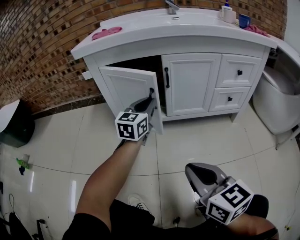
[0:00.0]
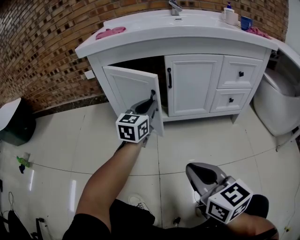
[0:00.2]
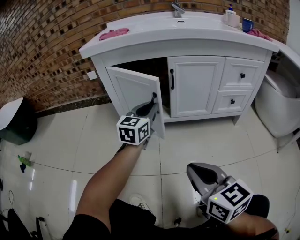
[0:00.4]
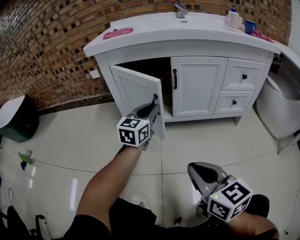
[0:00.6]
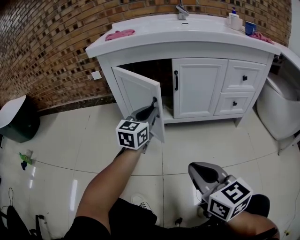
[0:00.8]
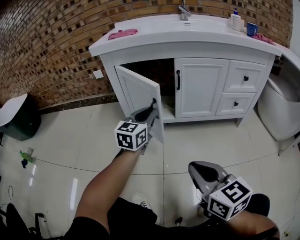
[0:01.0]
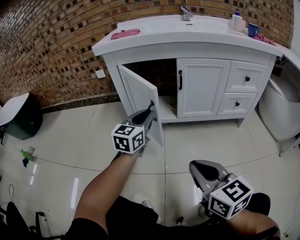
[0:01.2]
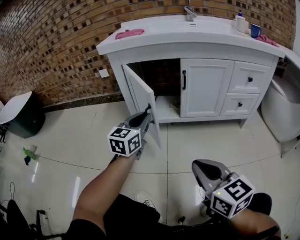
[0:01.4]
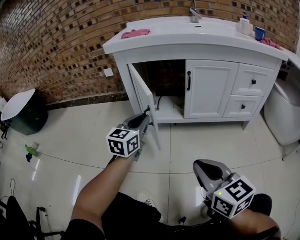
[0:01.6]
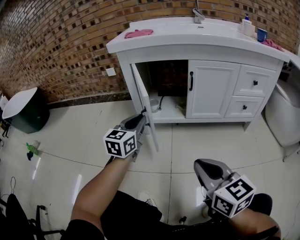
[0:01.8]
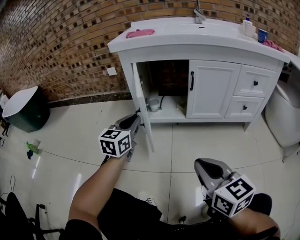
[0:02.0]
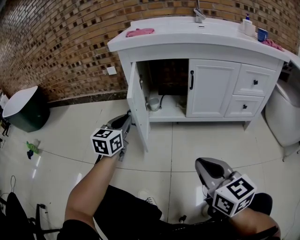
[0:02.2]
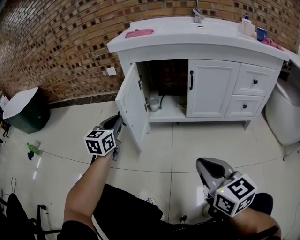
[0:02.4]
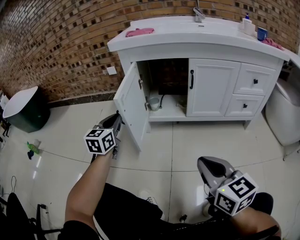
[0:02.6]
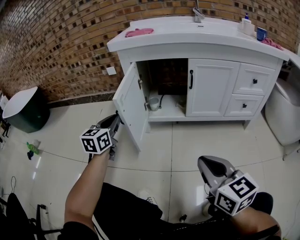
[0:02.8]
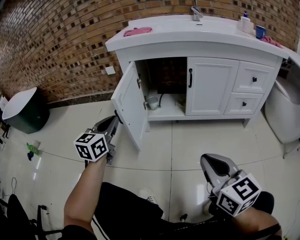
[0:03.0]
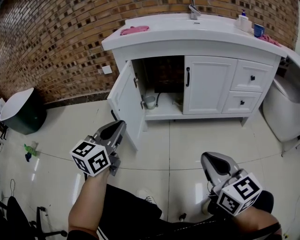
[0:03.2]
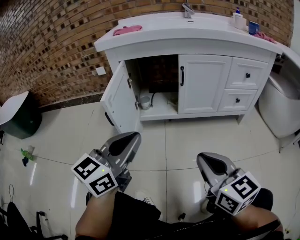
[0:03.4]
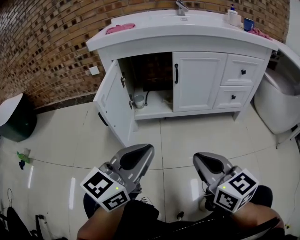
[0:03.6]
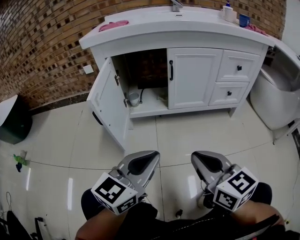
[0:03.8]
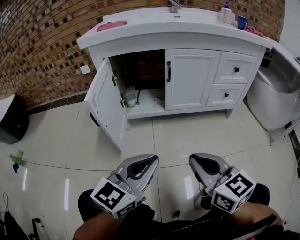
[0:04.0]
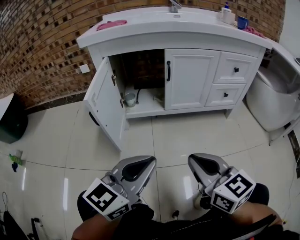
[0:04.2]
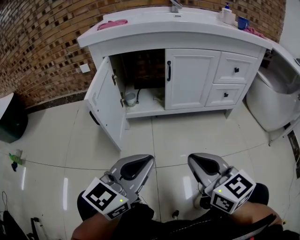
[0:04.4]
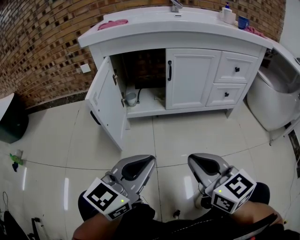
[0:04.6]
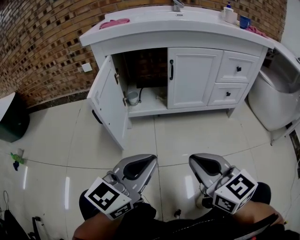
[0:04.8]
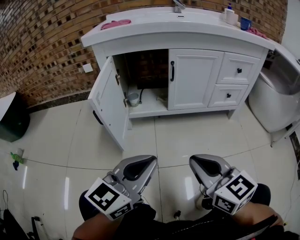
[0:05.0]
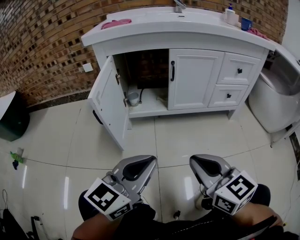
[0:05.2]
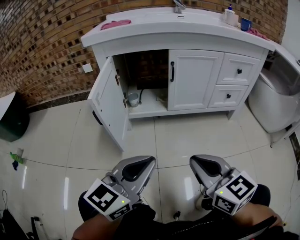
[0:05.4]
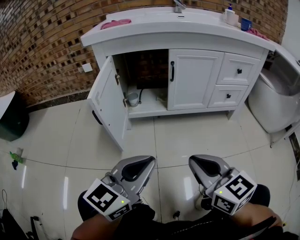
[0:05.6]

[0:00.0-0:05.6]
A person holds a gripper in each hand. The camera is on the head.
0:00.0 to 0:01.4: The left gripper travels to the left and backward by some 15 cm.
0:01.4 to 0:02.8: The left gripper shifts some 15 cm to the left.
0:02.8 to 0:04.2: The left gripper goes about 30 cm to the right and backward, and changes its angle by some 40 degrees.
0:04.2 to 0:05.6: Both grippers stay about where they are.

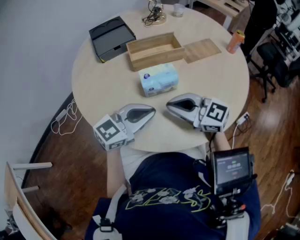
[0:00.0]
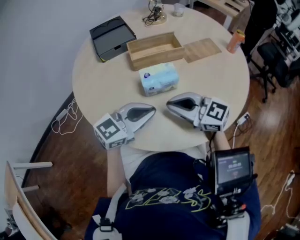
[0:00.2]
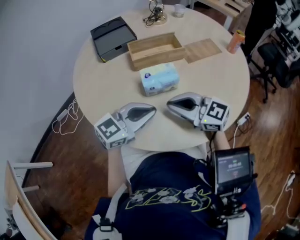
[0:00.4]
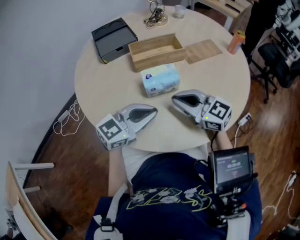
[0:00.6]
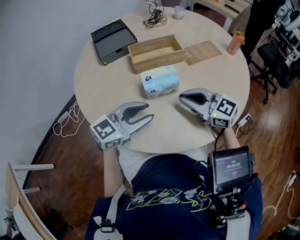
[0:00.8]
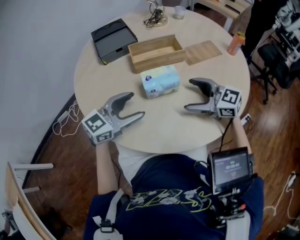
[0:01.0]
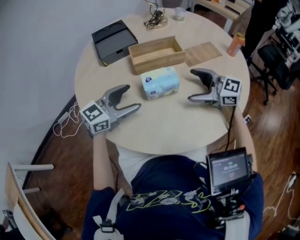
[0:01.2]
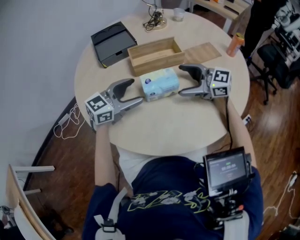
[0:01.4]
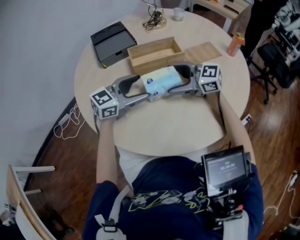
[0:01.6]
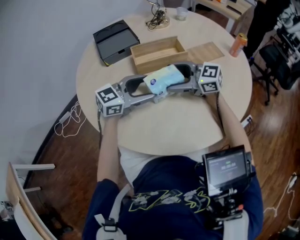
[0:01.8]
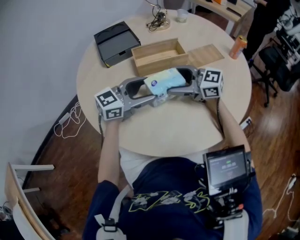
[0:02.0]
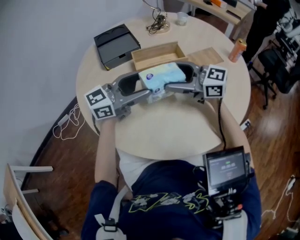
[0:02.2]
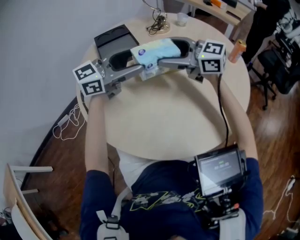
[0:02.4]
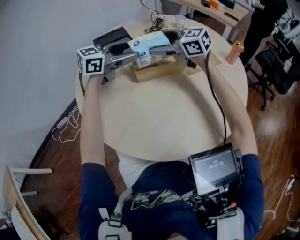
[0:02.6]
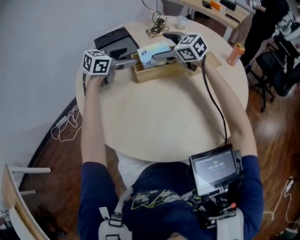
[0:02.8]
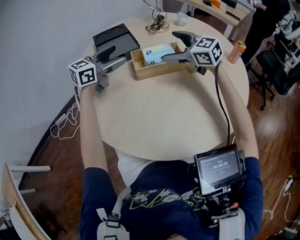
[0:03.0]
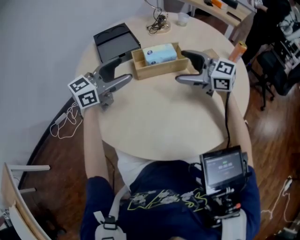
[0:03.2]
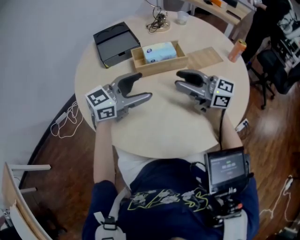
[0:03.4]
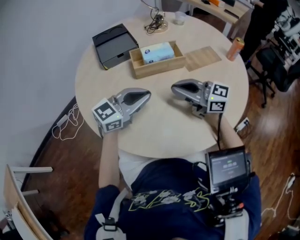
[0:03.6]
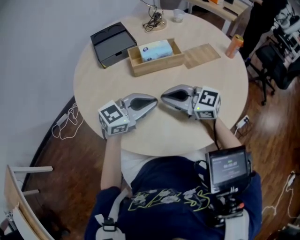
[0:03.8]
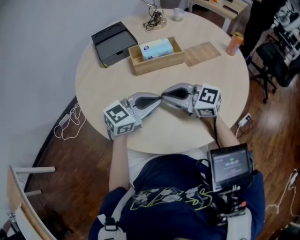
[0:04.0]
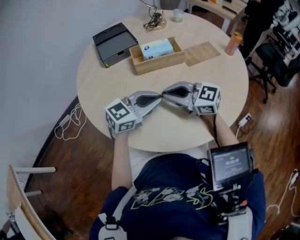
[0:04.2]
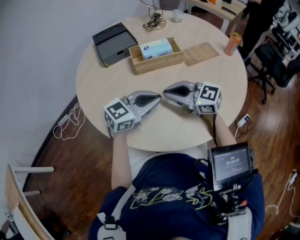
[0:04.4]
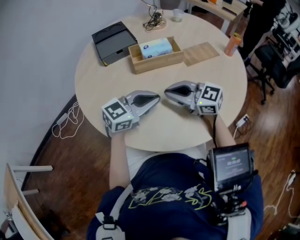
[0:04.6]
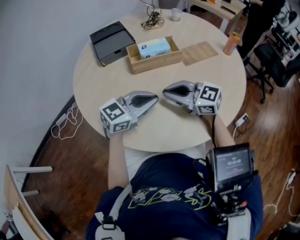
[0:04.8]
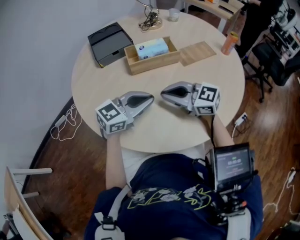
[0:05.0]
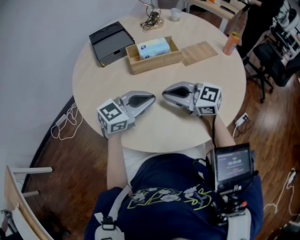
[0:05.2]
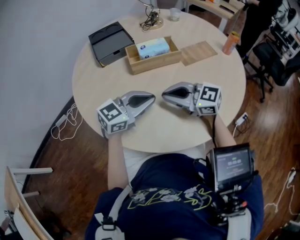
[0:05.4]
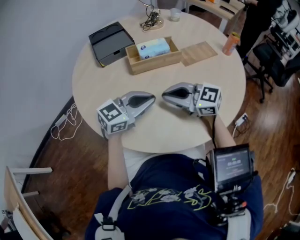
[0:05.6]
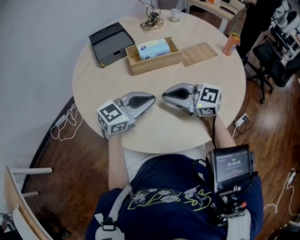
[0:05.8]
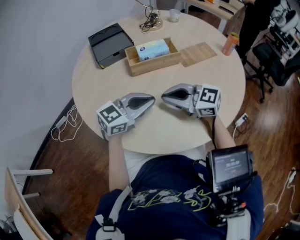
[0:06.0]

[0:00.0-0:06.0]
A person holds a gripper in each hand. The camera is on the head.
0:00.0 to 0:01.6: The right gripper shifts by roughly 10 cm, and opens up, while the left gripper ends up some 10 cm from where it was, and opens.
0:01.6 to 0:03.0: The left gripper shifts by some 20 cm. The right gripper shifts by approximately 15 cm, and rotates some 20 degrees.
0:03.0 to 0:04.4: The left gripper shifts by about 25 cm, and closes its fingers. Meanwhile the right gripper shifts by approximately 20 cm, and closes up.
0:04.4 to 0:06.0: Both grippers stay put.

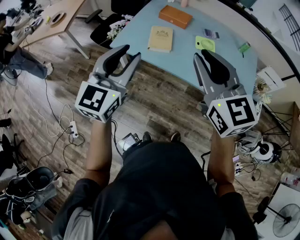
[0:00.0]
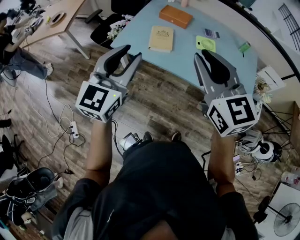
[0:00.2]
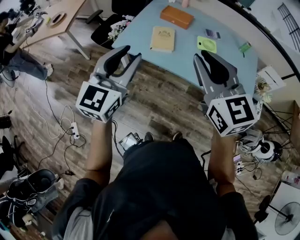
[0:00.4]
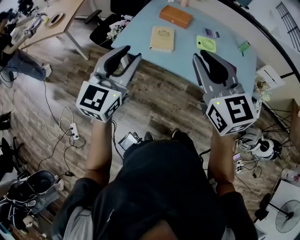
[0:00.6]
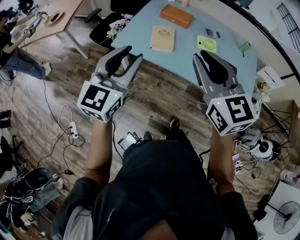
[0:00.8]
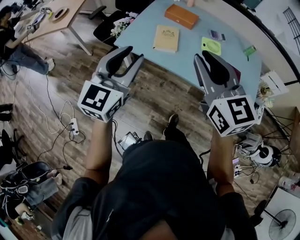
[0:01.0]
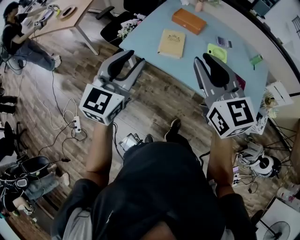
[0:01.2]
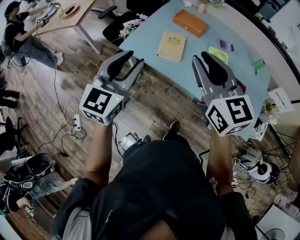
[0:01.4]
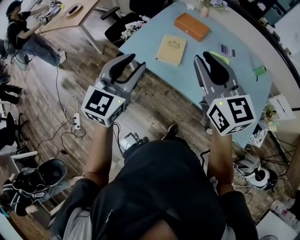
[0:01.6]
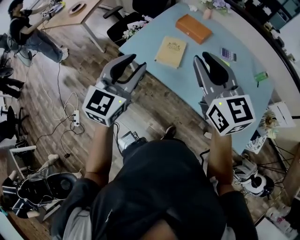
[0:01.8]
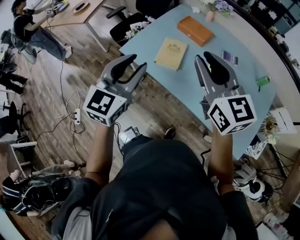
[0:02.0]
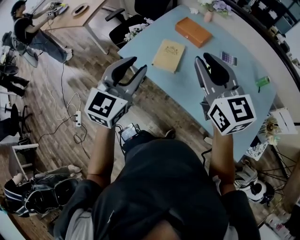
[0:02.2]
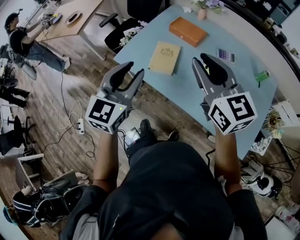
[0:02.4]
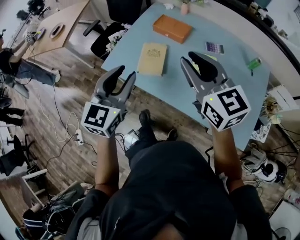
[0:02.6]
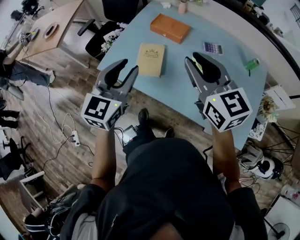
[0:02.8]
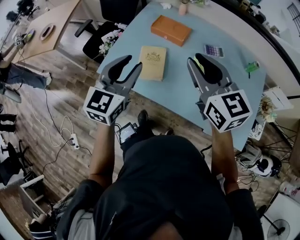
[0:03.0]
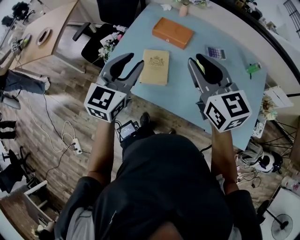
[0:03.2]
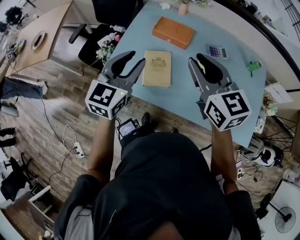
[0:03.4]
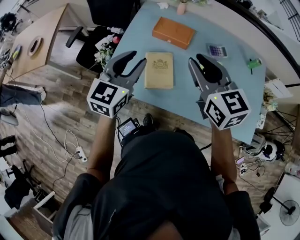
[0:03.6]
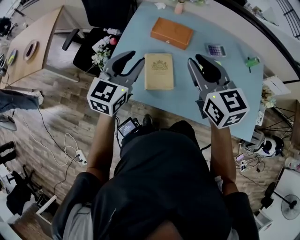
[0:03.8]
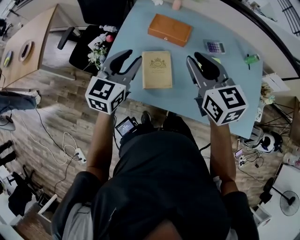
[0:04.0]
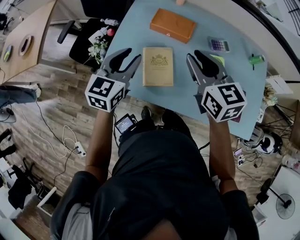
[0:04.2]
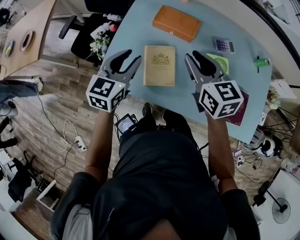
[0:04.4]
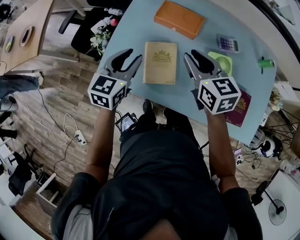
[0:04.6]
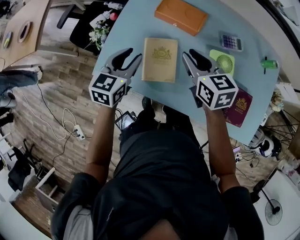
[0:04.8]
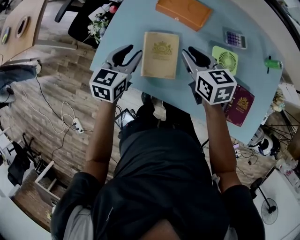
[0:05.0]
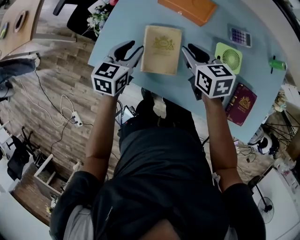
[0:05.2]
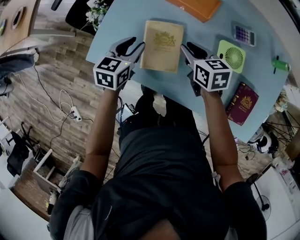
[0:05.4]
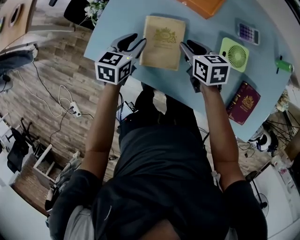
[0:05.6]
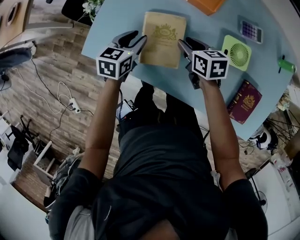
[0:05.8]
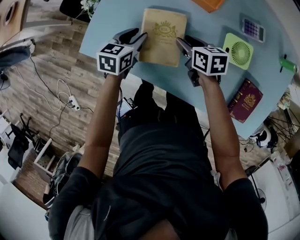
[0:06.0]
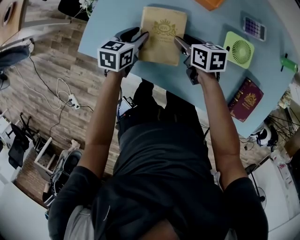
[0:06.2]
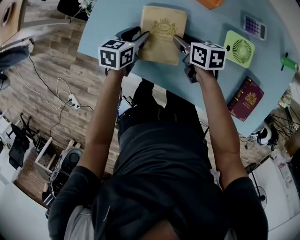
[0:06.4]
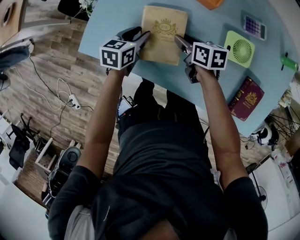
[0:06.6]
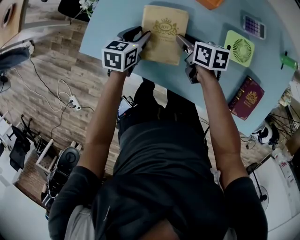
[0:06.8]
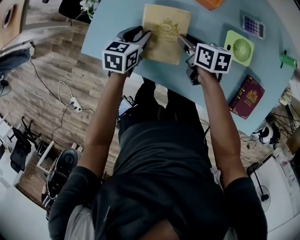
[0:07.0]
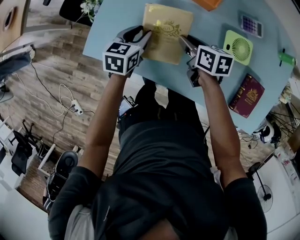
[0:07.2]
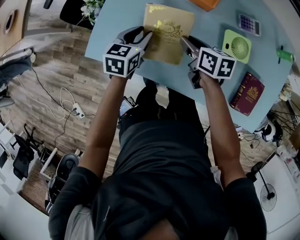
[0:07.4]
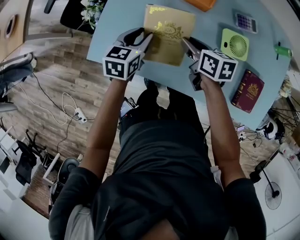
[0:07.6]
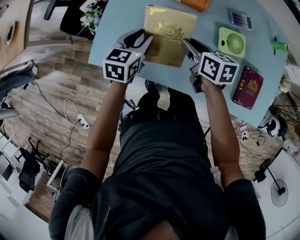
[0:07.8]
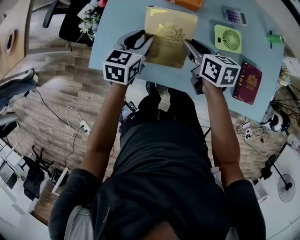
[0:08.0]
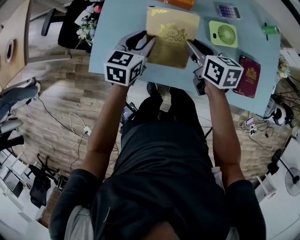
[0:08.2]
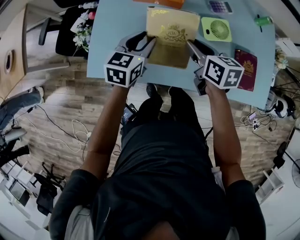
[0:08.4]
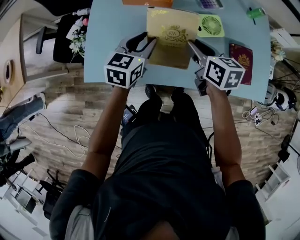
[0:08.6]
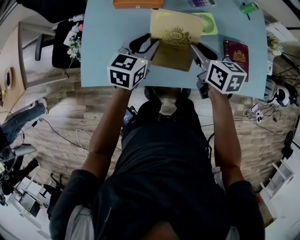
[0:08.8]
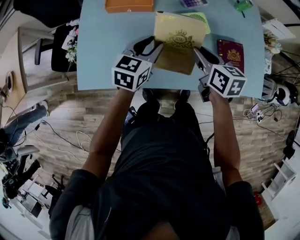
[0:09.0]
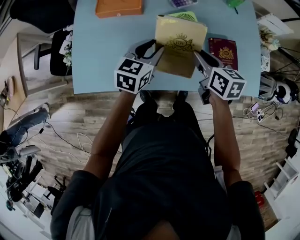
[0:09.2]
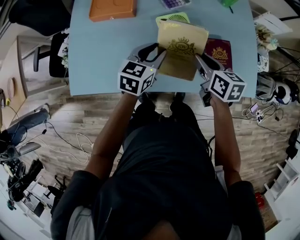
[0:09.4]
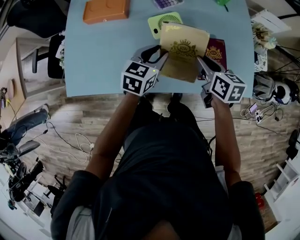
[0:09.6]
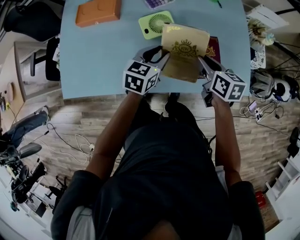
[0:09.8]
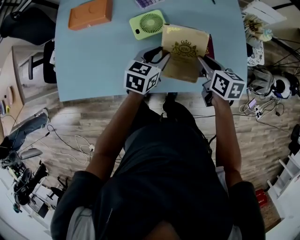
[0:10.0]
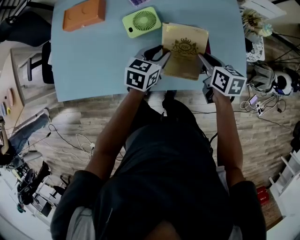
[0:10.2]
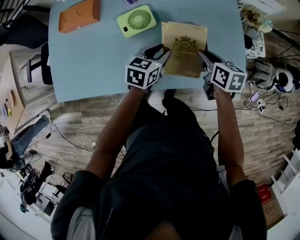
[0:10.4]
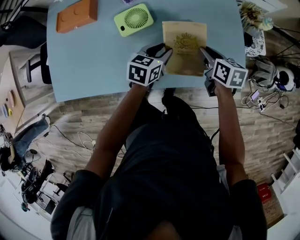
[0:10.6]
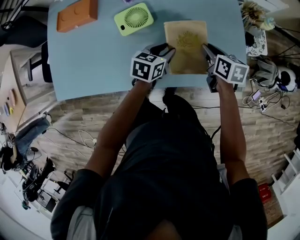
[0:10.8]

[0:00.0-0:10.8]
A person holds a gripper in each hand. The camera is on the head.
0:00.0 to 0:01.6: The left gripper is displaced forward by about 5 cm. The right gripper travels forward by about 10 cm.
0:01.6 to 0:03.0: Both grippers move forward and to the right, about 15 cm.
0:03.0 to 0:04.6: The left gripper travels forward, downward and to the left by roughly 25 cm; the right gripper heads downward, forward and to the left, covering roughly 25 cm, and changes its angle by roughly 20 degrees.
0:04.6 to 0:06.2: Both grippers move downward, about 25 cm. The right gripper rotates approximately 30 degrees. Meanwhile the left gripper changes its angle by roughly 30 degrees.
0:06.2 to 0:07.8: Both grippers travel together upward, some 10 cm.
0:07.8 to 0:09.2: Both grippers travel together to the right, some 25 cm. The right gripper changes its angle by about 20 degrees; the left gripper rotates approximately 20 degrees.
0:09.2 to 0:10.8: Both grippers move to the right and downward, approximately 30 cm.

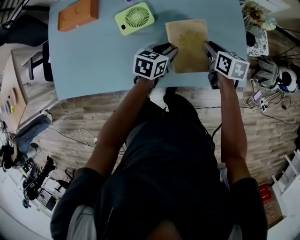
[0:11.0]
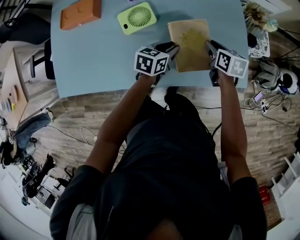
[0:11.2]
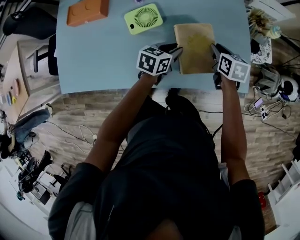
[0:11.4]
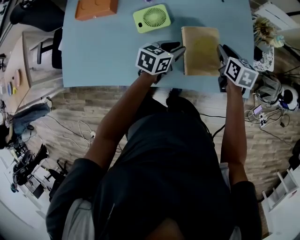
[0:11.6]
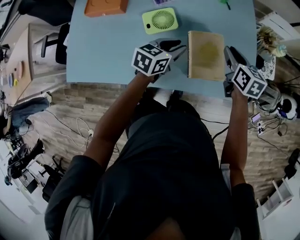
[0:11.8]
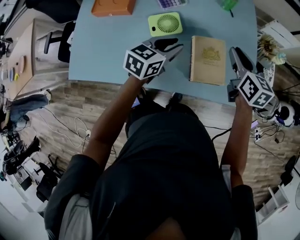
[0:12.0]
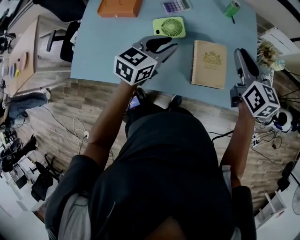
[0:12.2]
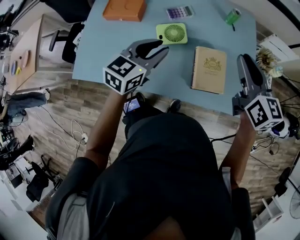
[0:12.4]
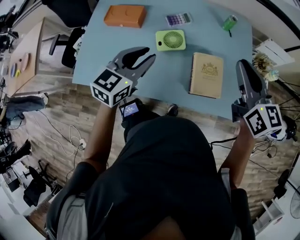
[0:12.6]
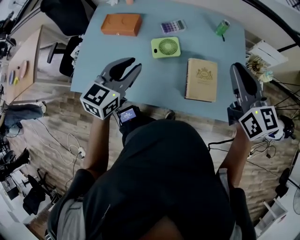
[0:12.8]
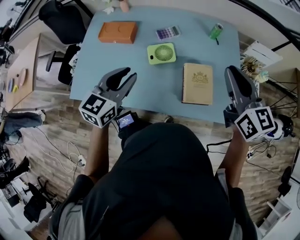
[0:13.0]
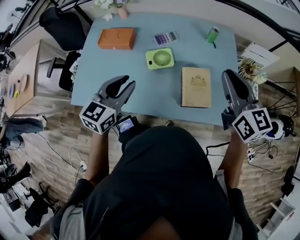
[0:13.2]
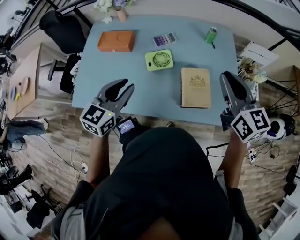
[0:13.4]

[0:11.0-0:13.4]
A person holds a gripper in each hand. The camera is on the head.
0:11.0 to 0:12.2: The left gripper is displaced upward and to the left by approximately 25 cm, and swivels roughly 20 degrees, while the right gripper goes about 25 cm upward, and rotates roughly 30 degrees.
0:12.2 to 0:13.4: The left gripper shifts approximately 15 cm to the left, backward and upward. Meanwhile the right gripper is displaced upward and backward by about 10 cm.
